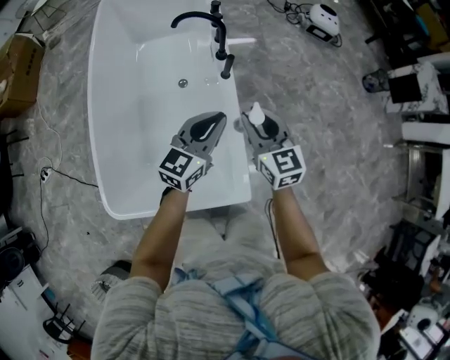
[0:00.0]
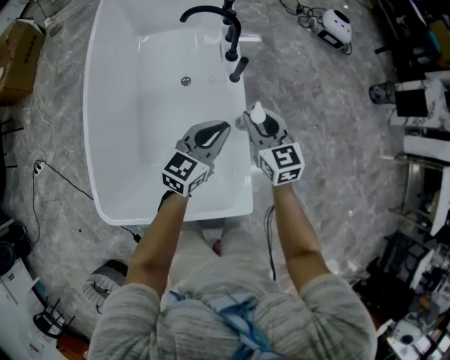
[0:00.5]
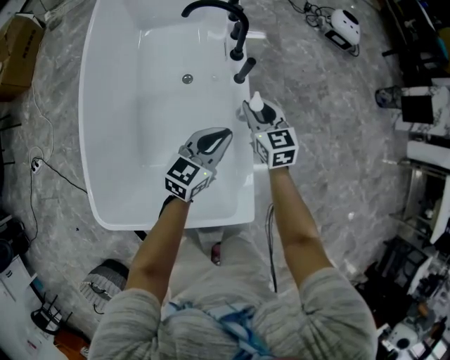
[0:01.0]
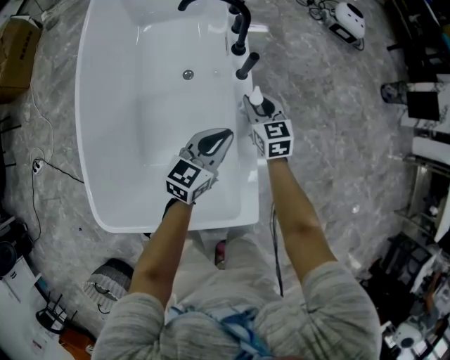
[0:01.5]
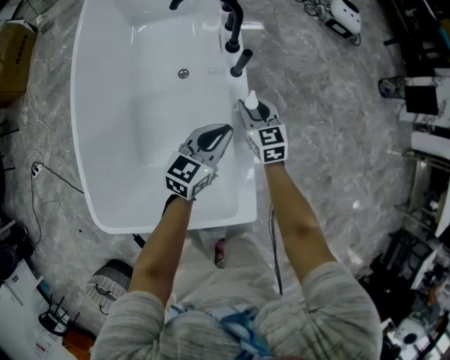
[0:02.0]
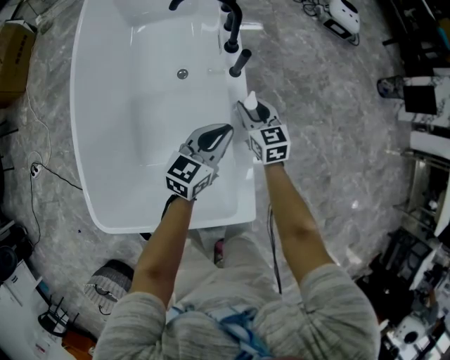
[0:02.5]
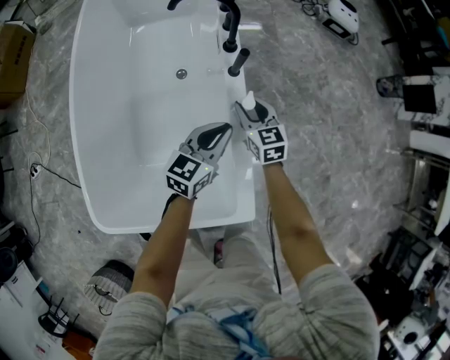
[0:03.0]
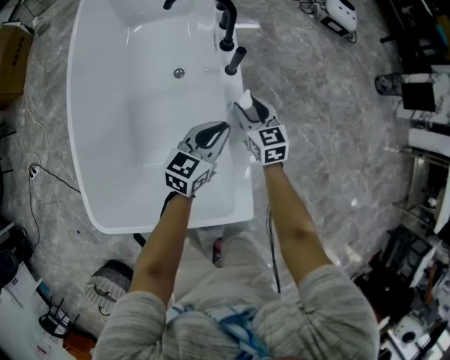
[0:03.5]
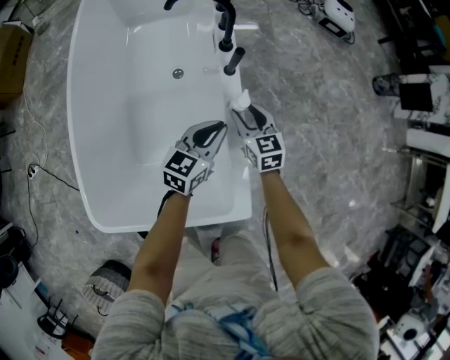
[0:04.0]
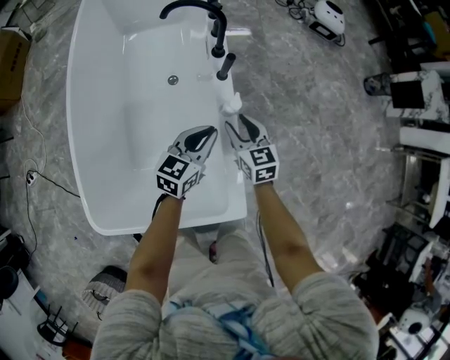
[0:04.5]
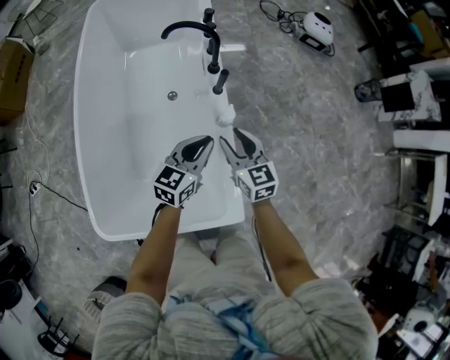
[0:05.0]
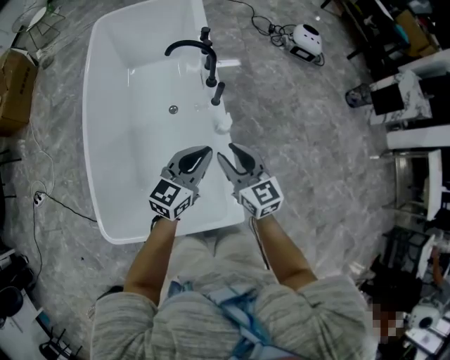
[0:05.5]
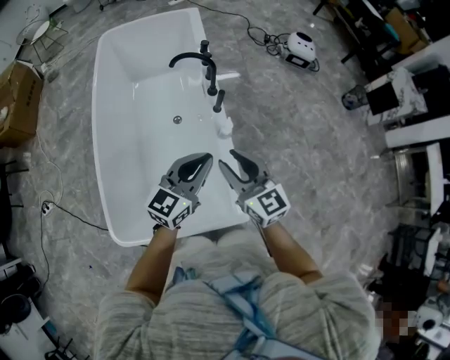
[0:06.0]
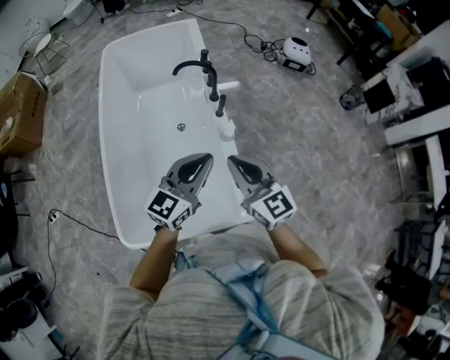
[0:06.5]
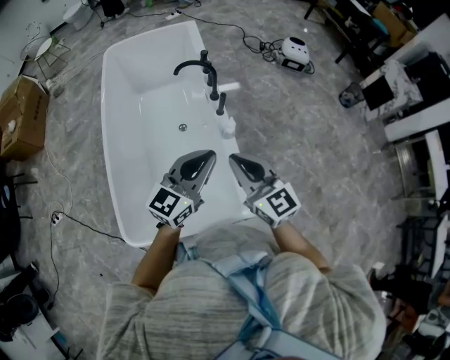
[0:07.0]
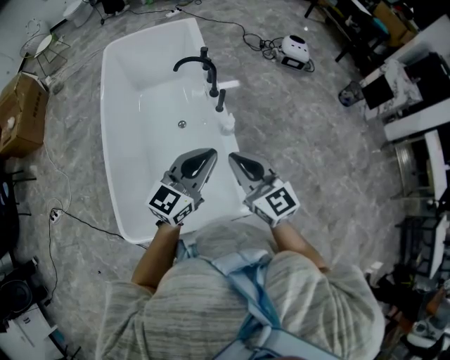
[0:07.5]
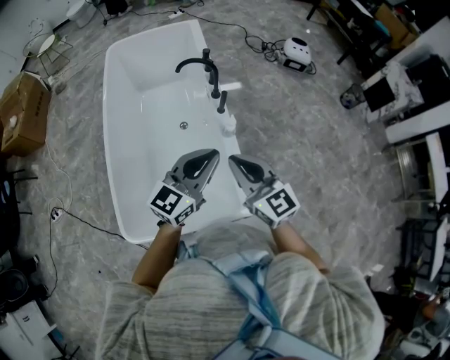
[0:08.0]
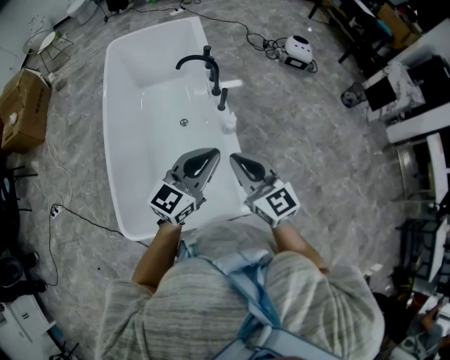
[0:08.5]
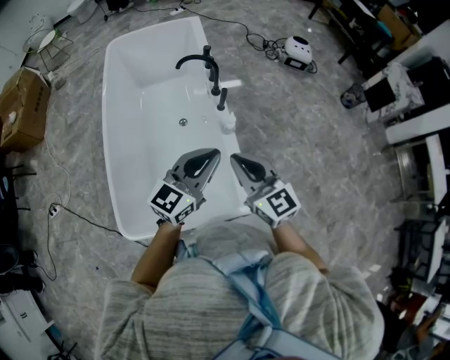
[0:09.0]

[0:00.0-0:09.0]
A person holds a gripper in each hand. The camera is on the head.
0:00.0 to 0:02.0: The left gripper travels downward by about 15 cm. The right gripper shifts about 25 cm downward and forward.
0:02.0 to 0:04.5: The right gripper goes roughly 5 cm backward.
0:04.5 to 0:07.0: The two grippers go approximately 35 cm upward and backward. The left gripper changes its angle by approximately 20 degrees. Meanwhile the right gripper rotates some 30 degrees, and closes.
0:07.0 to 0:09.0: The grippers move only a little.

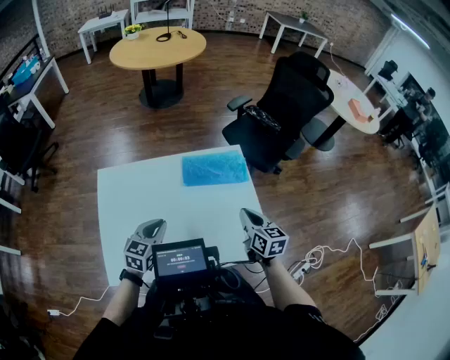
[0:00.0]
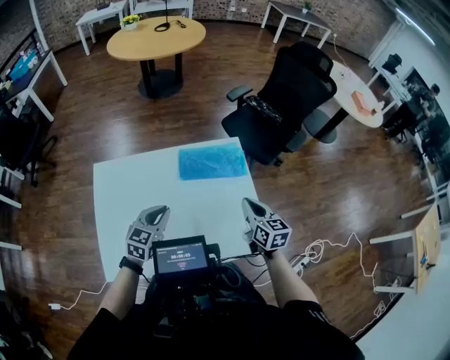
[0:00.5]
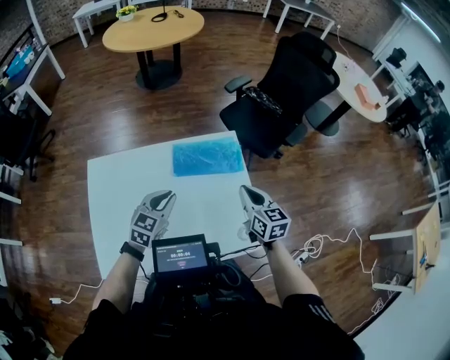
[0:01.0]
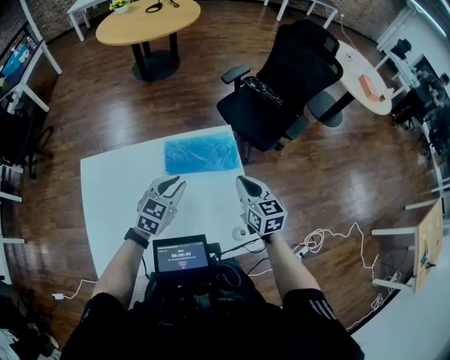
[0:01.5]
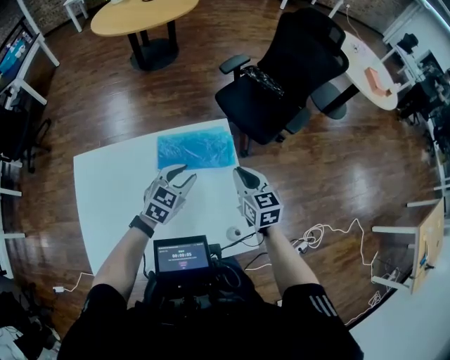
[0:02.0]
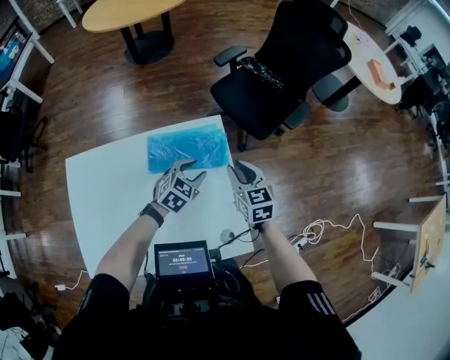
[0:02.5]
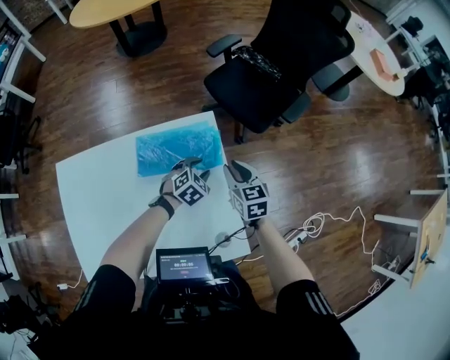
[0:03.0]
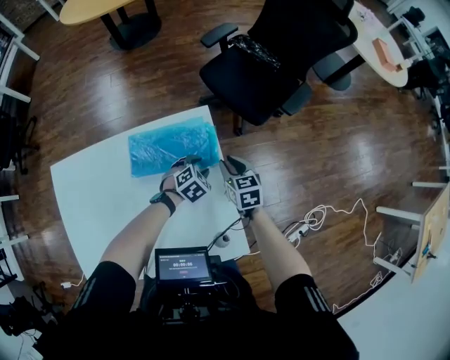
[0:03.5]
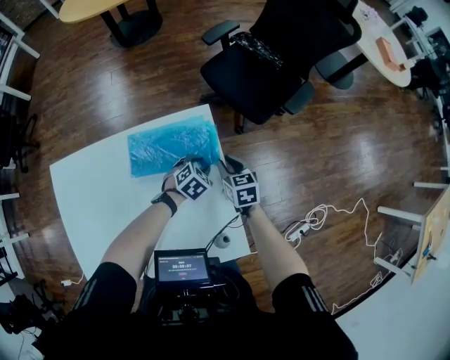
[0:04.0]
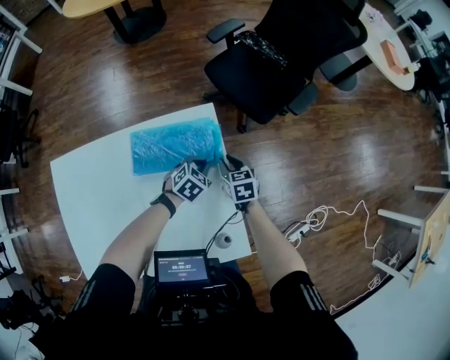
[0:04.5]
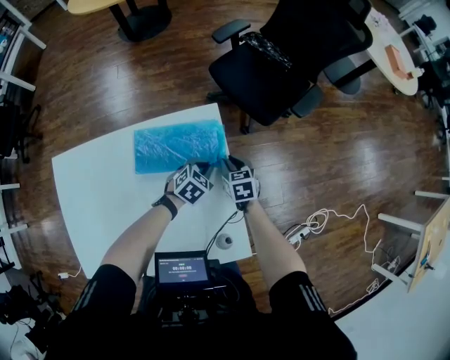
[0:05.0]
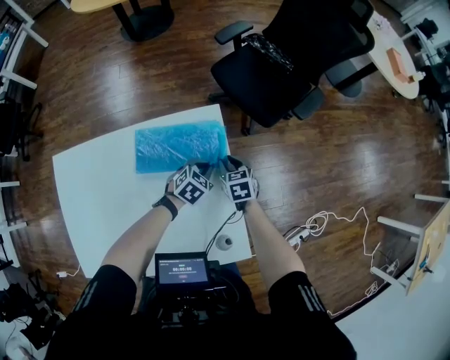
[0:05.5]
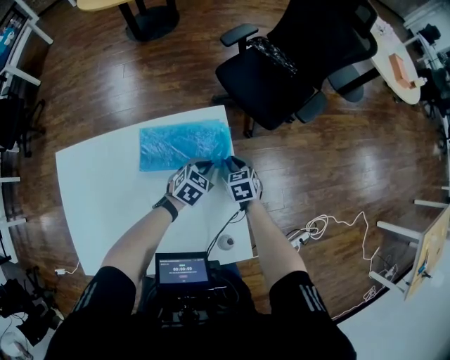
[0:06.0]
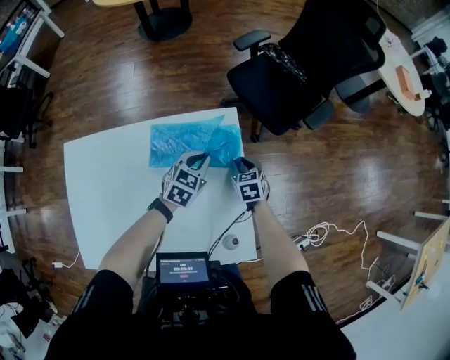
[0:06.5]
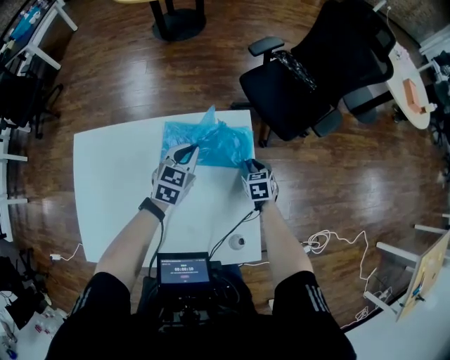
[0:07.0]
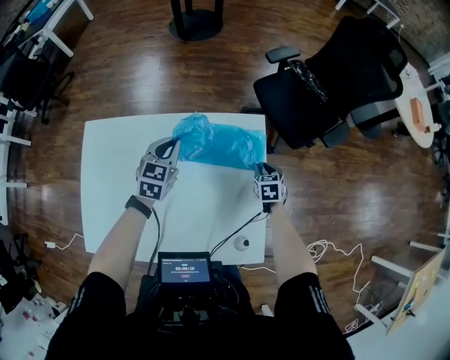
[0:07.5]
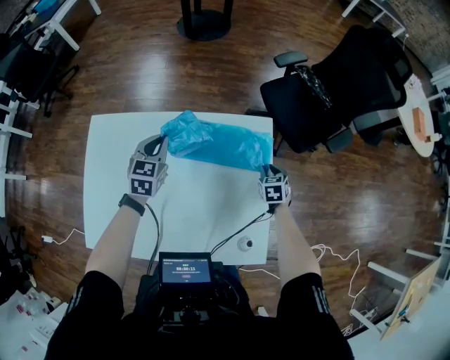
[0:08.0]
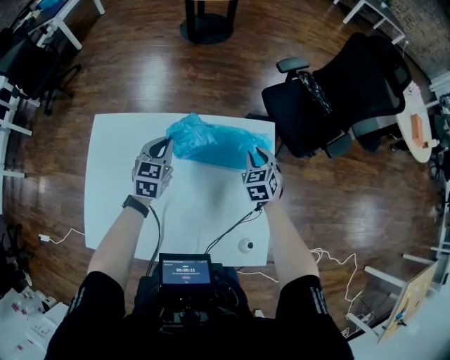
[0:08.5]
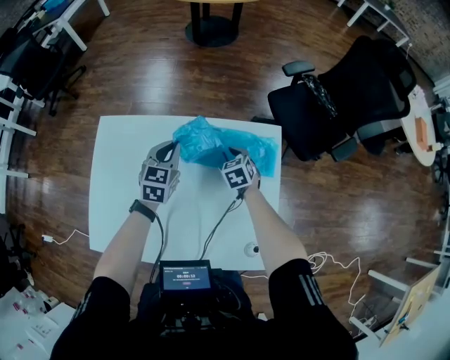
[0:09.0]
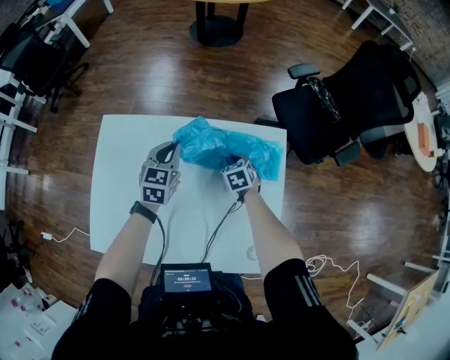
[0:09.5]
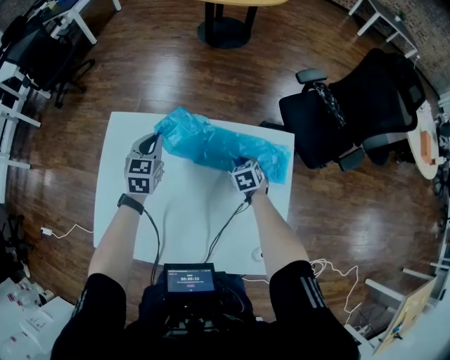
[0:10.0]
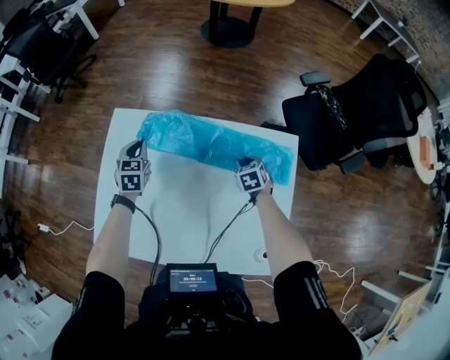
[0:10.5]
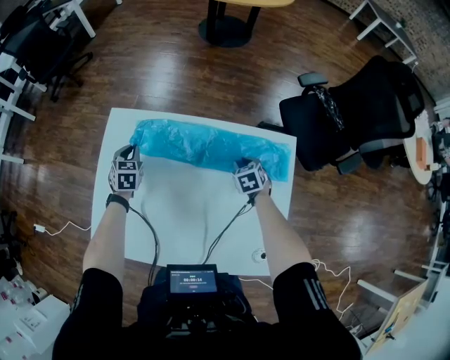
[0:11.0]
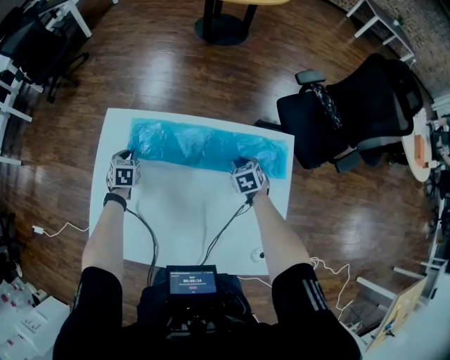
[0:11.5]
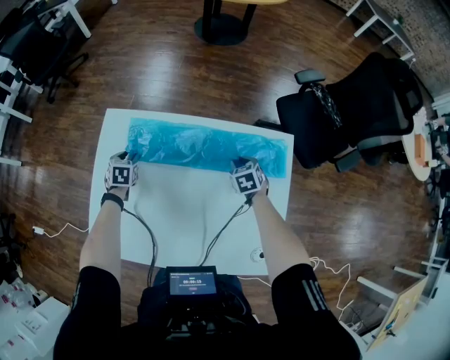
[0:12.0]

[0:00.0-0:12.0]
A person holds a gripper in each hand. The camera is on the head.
0:00.0 to 0:02.0: The right gripper goes approximately 15 cm forward and to the right; the left gripper goes roughly 25 cm to the right and forward, and opens up.
0:02.0 to 0:04.0: The left gripper shifts roughly 25 cm downward and to the right, and swivels roughly 30 degrees. The right gripper shifts some 20 cm downward.
0:04.0 to 0:06.0: The left gripper closes.
0:06.0 to 0:08.0: The left gripper heads to the left, covering about 30 cm, and turns by some 40 degrees.
0:08.0 to 0:10.0: The right gripper shifts approximately 20 cm to the left. Meanwhile the left gripper shifts some 10 cm to the left.
0:10.0 to 0:12.0: The left gripper moves downward and to the left, some 20 cm, changes its angle by about 30 degrees, and opens up.

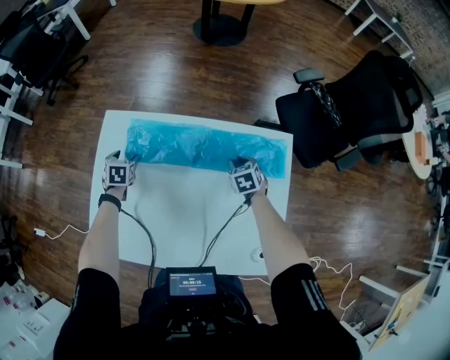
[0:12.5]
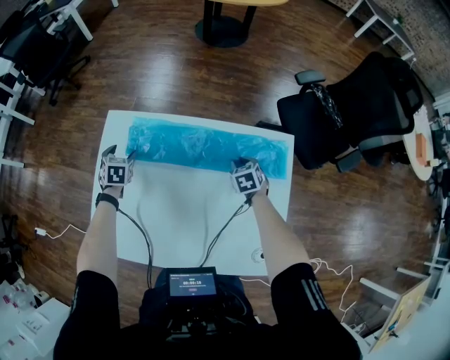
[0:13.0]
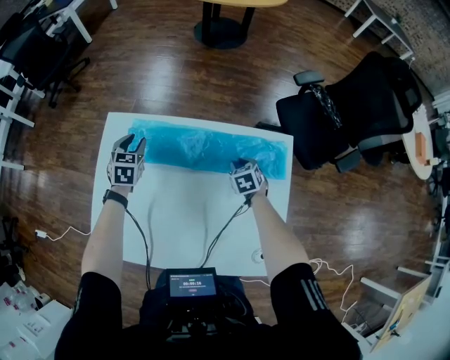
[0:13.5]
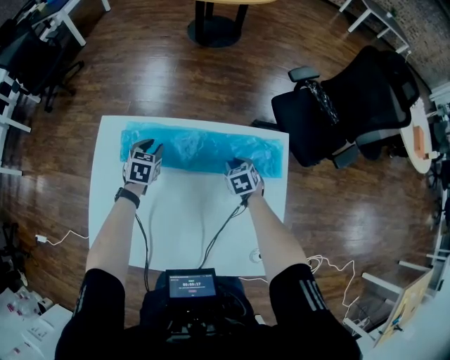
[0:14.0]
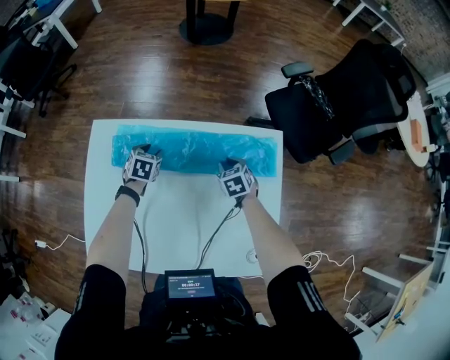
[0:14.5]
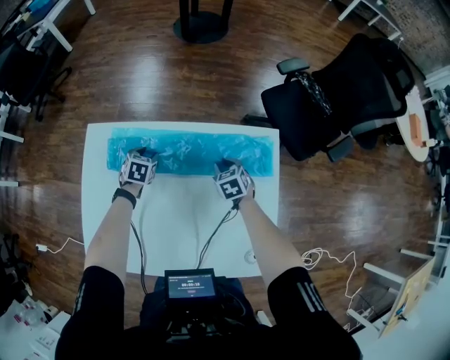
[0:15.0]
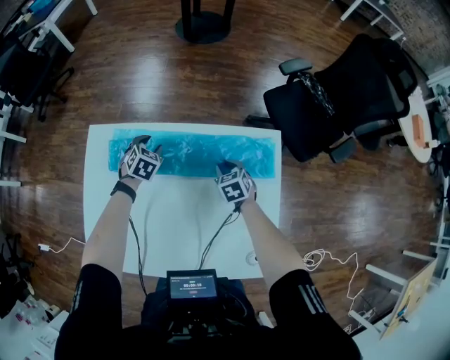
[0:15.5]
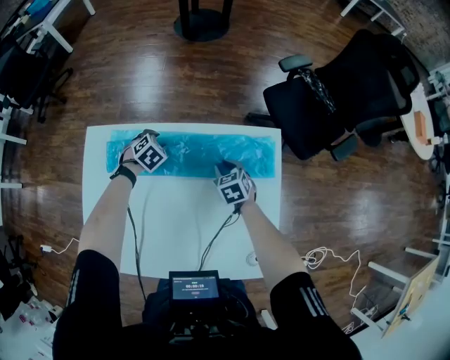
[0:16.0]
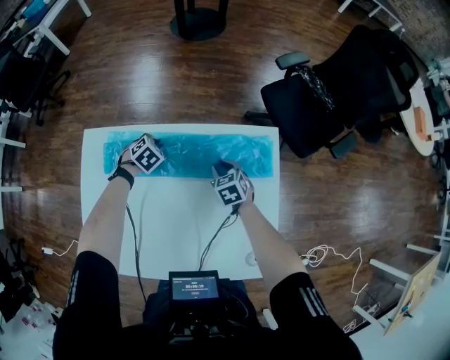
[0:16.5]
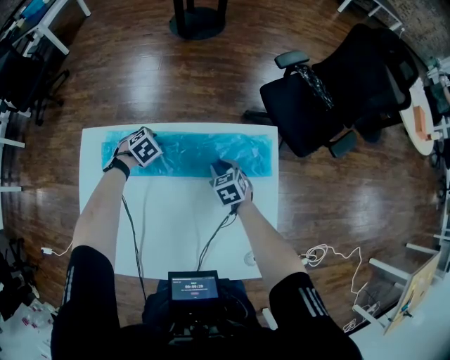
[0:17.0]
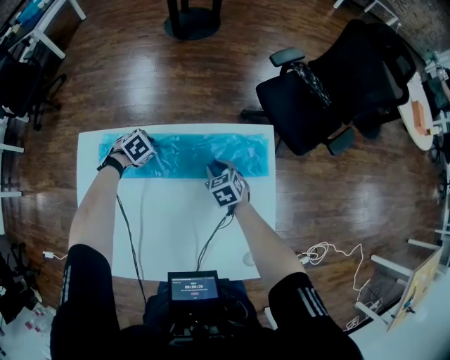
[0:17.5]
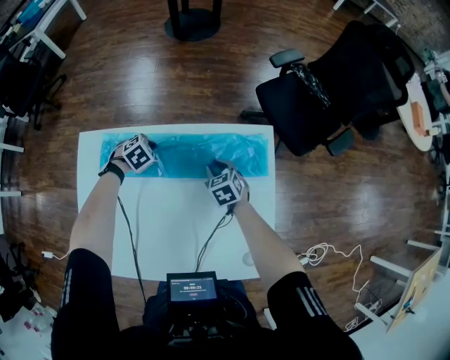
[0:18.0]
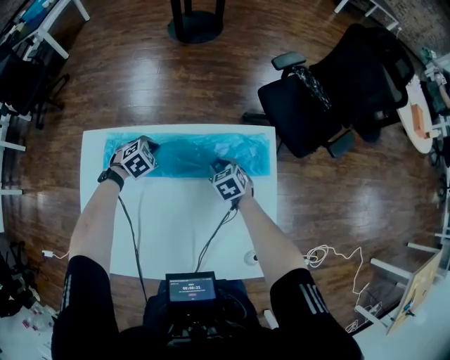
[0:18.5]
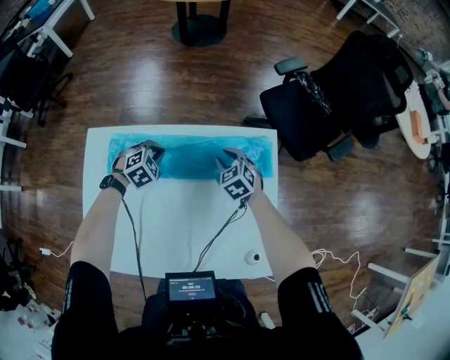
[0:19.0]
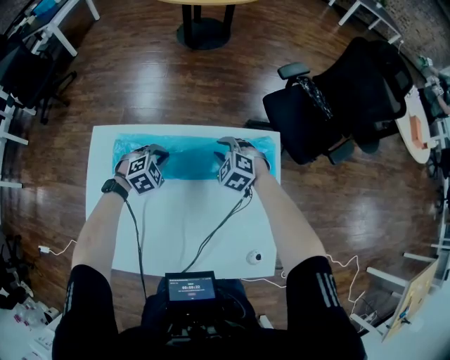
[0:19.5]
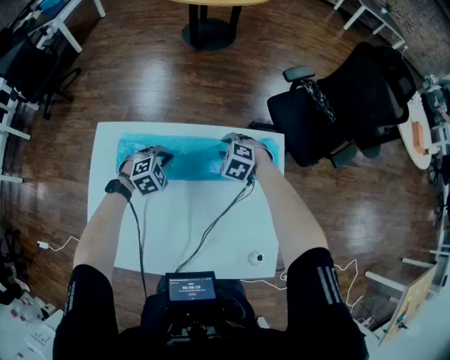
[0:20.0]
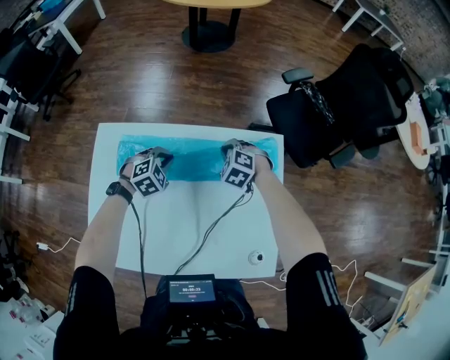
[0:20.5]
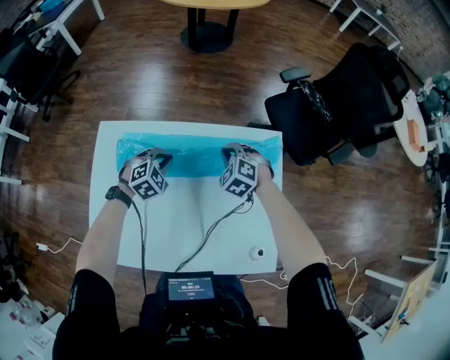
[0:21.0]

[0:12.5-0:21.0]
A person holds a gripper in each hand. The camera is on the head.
0:12.5 to 0:14.5: The left gripper shifts roughly 15 cm to the right.
0:14.5 to 0:16.5: The left gripper travels to the right by some 5 cm, swivels some 30 degrees, and closes up.
0:16.5 to 0:19.0: The right gripper moves some 5 cm, while the left gripper goes about 5 cm upward, and opens, then closes once more.
0:19.0 to 0:21.0: The left gripper ends up some 5 cm from where it was; the right gripper moves about 5 cm, turns by about 30 degrees, and closes.
